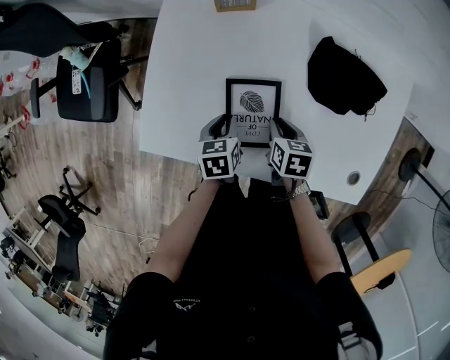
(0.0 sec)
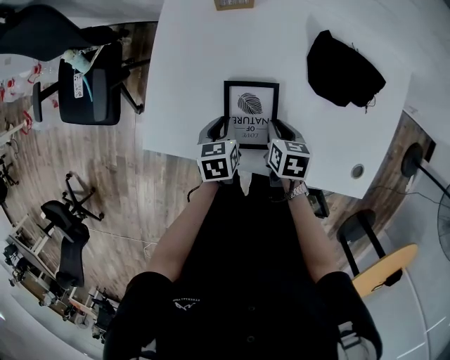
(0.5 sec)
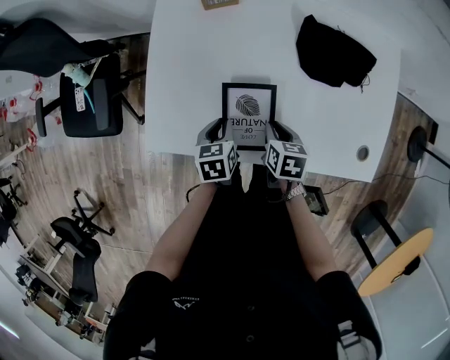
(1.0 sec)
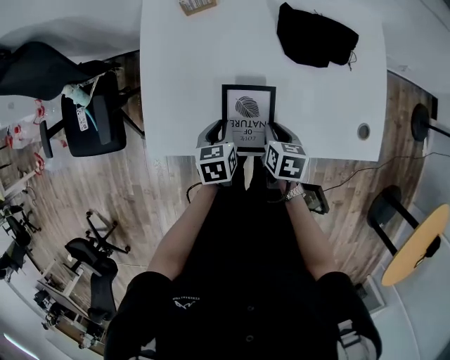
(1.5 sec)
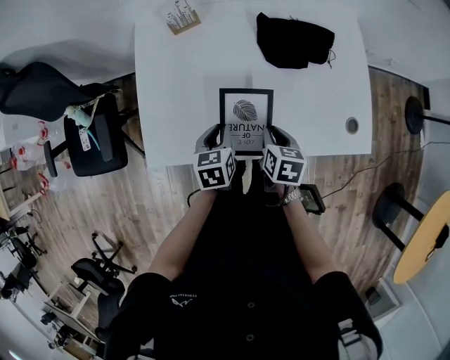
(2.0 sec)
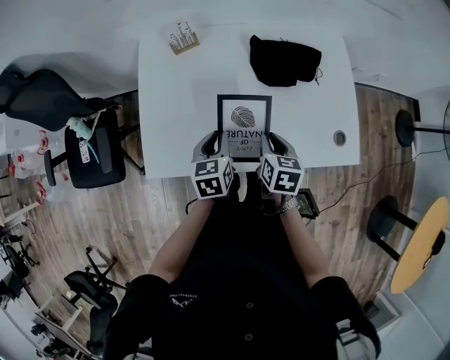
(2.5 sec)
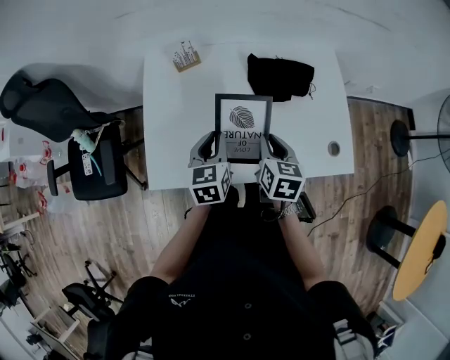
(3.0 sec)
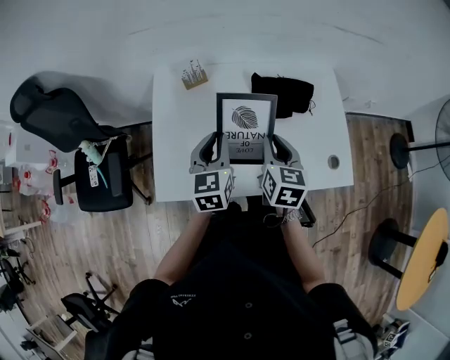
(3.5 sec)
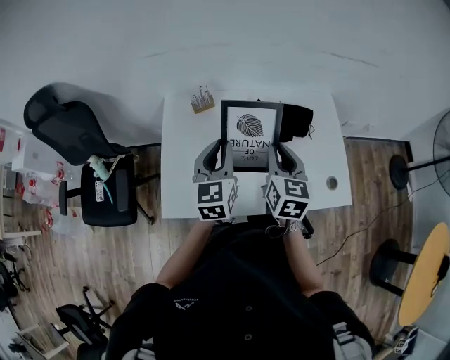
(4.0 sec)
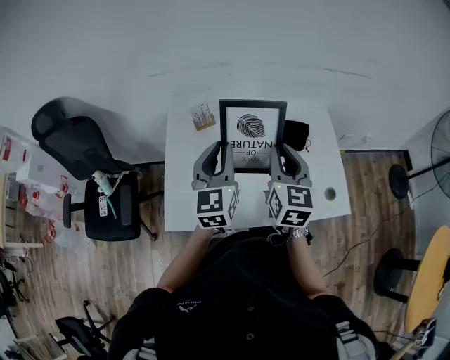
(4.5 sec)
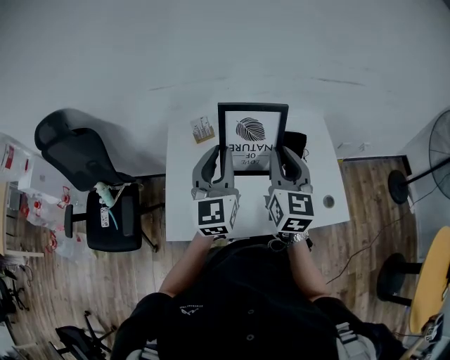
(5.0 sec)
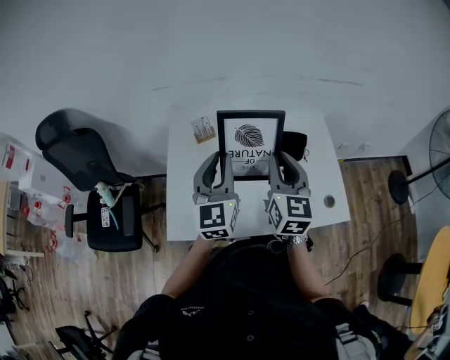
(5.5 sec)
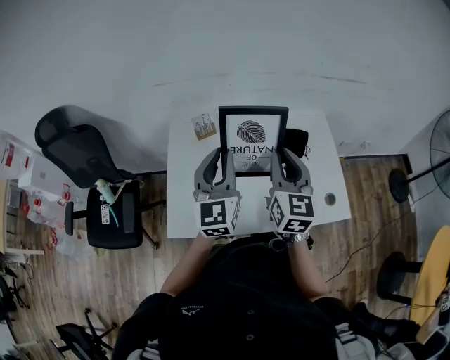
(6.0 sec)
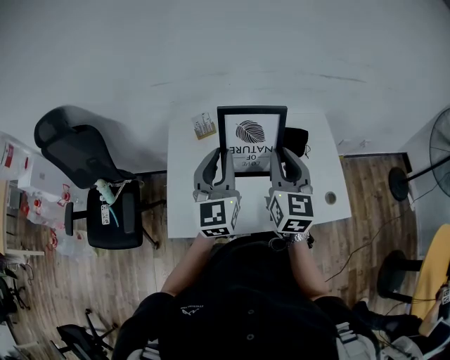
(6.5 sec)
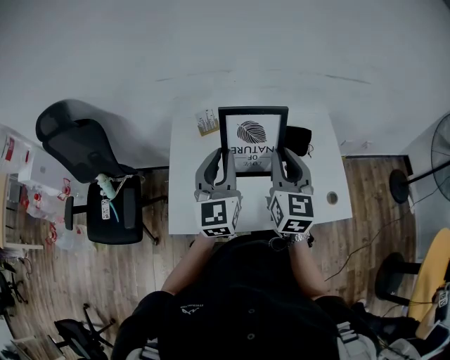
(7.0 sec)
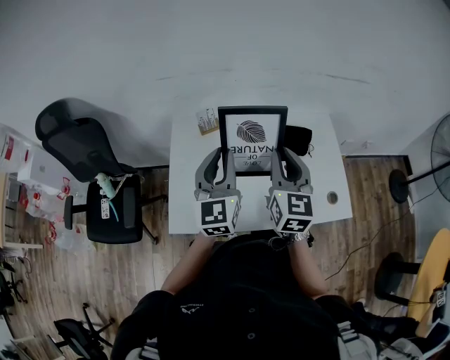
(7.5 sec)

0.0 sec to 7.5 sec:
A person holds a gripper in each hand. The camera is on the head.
0.0 sec to 2.0 sec: The right gripper heads backward and upward, covering about 15 cm, and changes its angle by approximately 20 degrees. The left gripper moves upward and backward, approximately 10 cm, and swivels some 20 degrees.
2.0 sec to 4.0 sec: Both grippers move upward, some 25 cm. The left gripper points its fingers roughly 30 degrees further upward. The right gripper angles its fingers upward, by some 30 degrees.
4.0 sec to 5.5 sec: The grippers both shift upward by approximately 10 cm.
5.5 sec to 7.5 sec: The grippers move only a little.

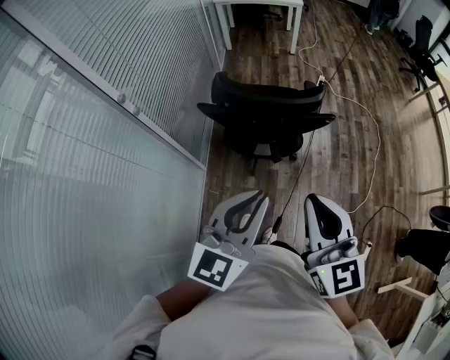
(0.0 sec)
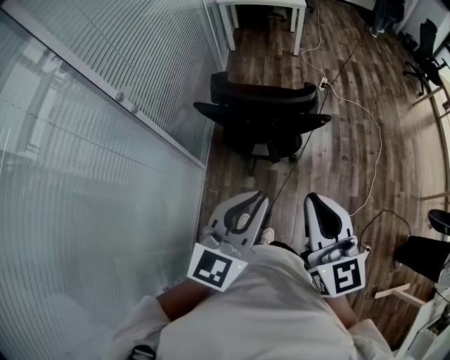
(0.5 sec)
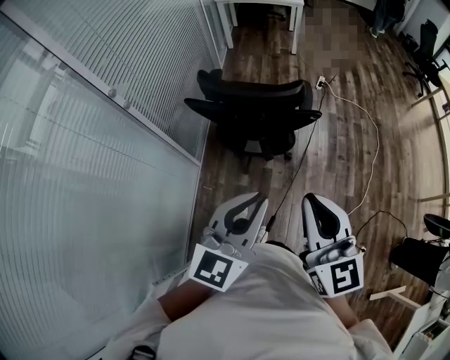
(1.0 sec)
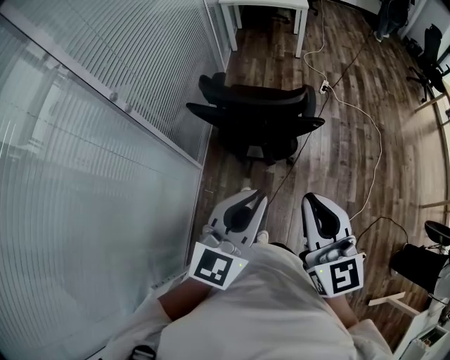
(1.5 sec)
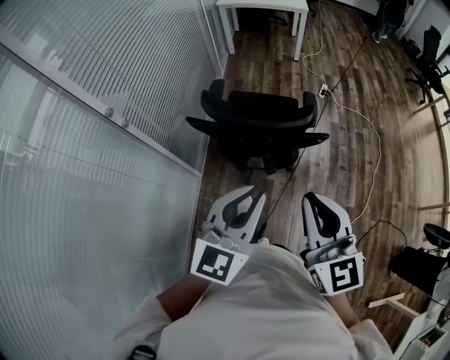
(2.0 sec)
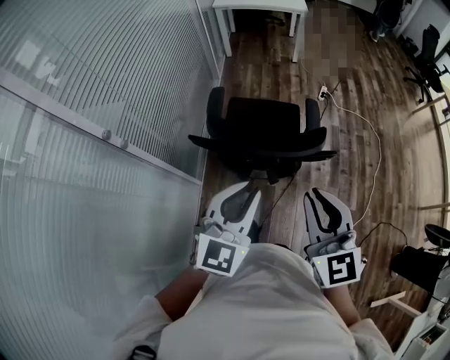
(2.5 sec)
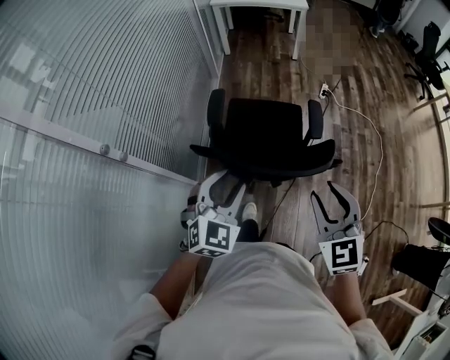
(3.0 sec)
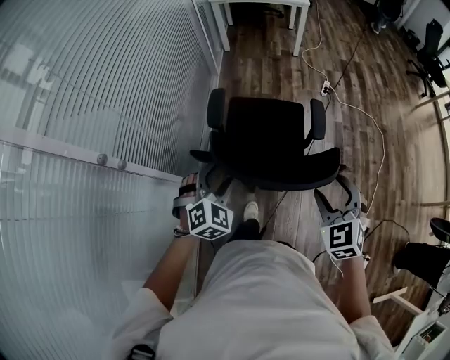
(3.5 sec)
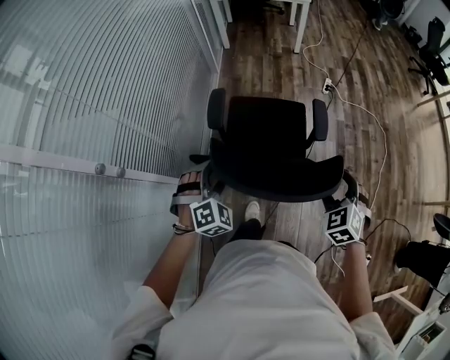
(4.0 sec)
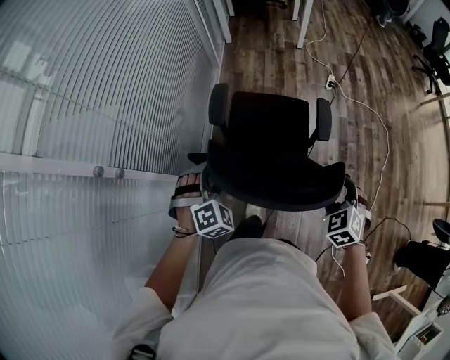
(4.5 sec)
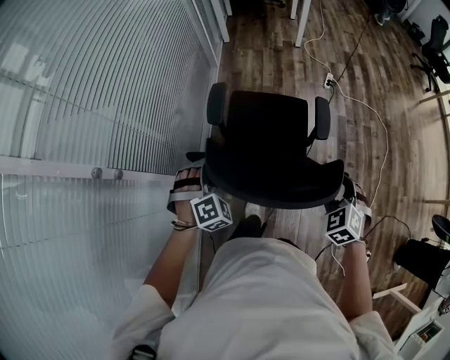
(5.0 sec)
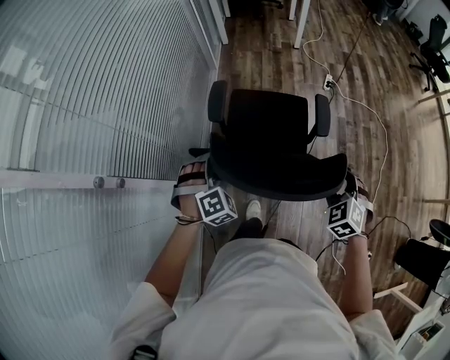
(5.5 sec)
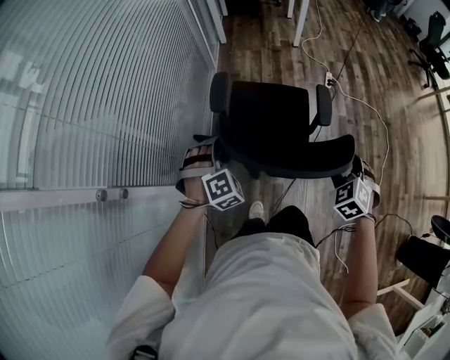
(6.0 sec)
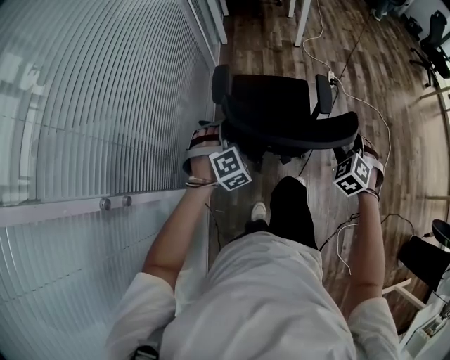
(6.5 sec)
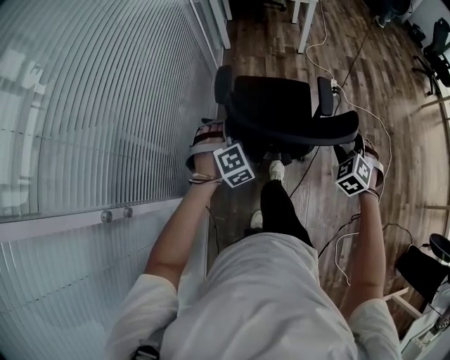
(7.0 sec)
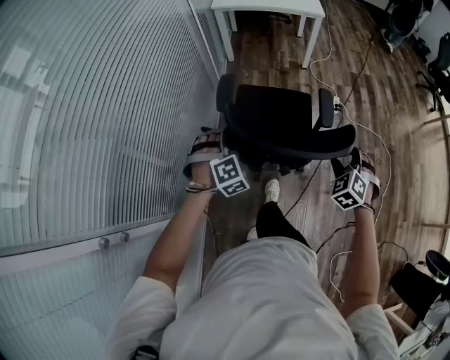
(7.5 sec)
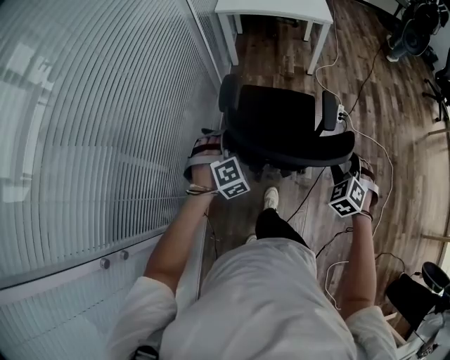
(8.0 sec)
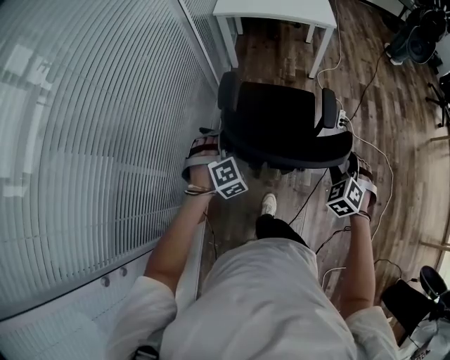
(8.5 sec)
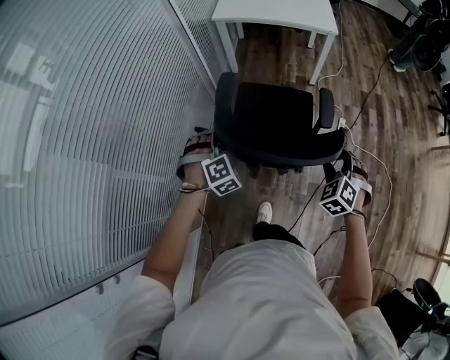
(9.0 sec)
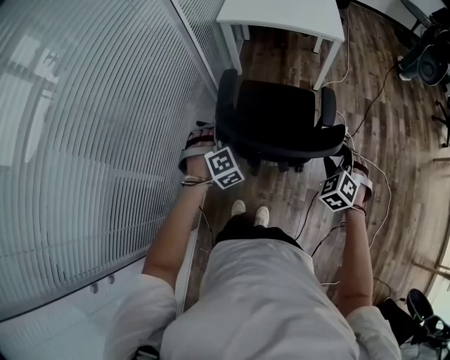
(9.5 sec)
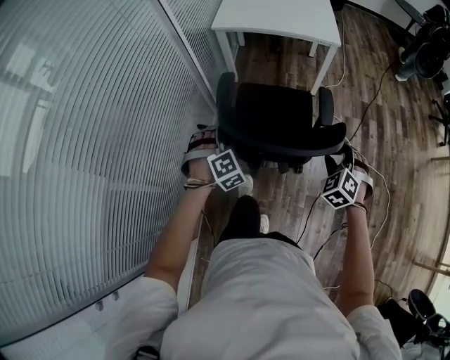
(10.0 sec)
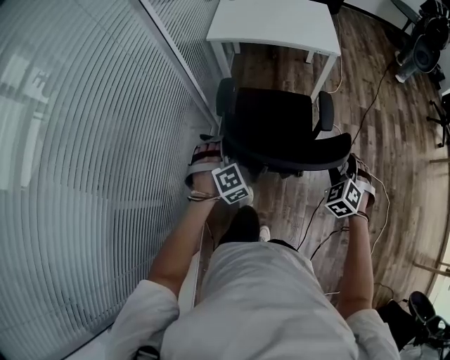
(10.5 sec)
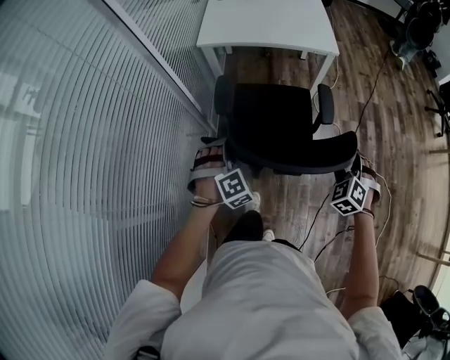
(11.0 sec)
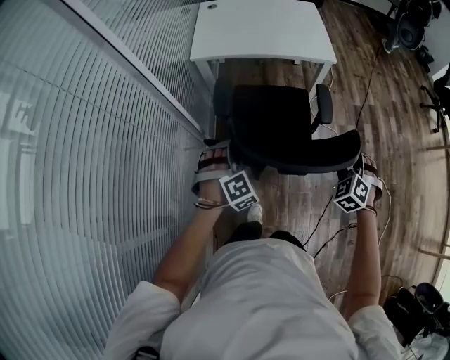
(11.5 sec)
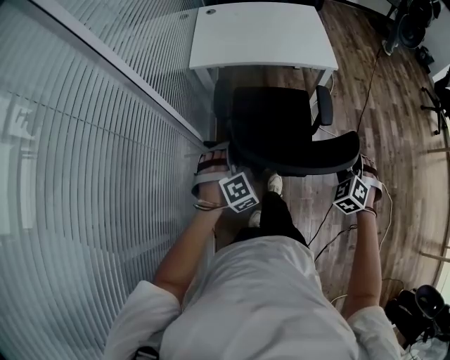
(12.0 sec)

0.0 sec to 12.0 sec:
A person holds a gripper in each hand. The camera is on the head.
0.0 sec to 2.0 sec: Both grippers travel together forward, about 10 cm.
2.0 sec to 4.0 sec: The left gripper shifts some 35 cm forward, downward and to the left, angles its fingers downward, by about 30 degrees, and opens its fingers. Meanwhile the right gripper moves forward and downward, some 30 cm, angles its fingers downward, by some 40 degrees, and opens its fingers.
4.0 sec to 6.0 sec: Both grippers travel together forward, some 10 cm.
6.0 sec to 8.0 sec: The grippers both shift forward by about 25 cm.
8.0 sec to 10.0 sec: Both grippers move forward, approximately 25 cm.
10.0 sec to 12.0 sec: The two grippers go roughly 25 cm forward.

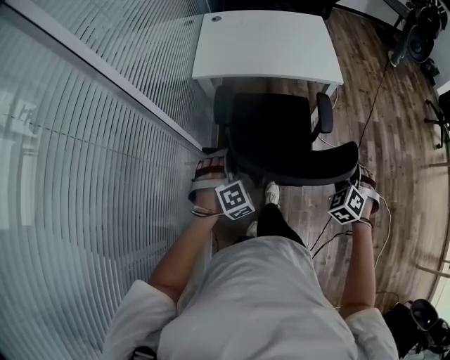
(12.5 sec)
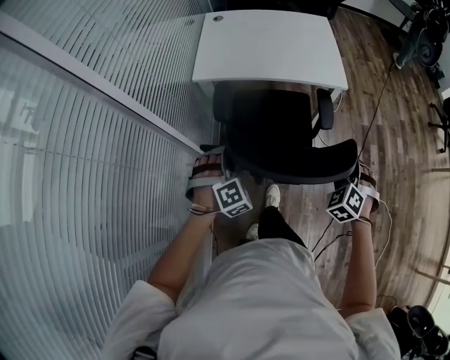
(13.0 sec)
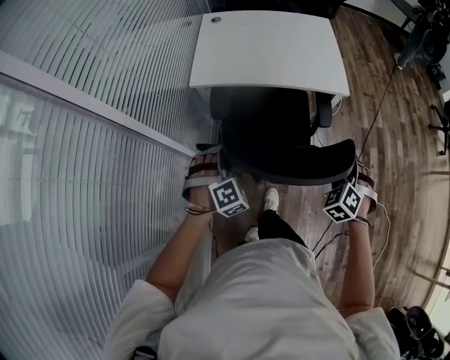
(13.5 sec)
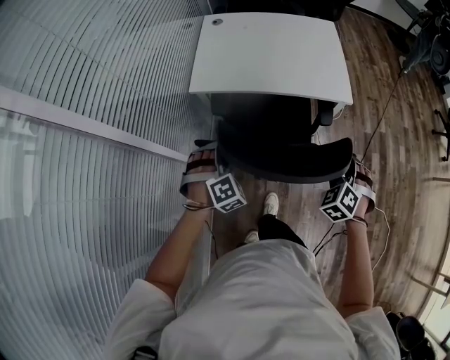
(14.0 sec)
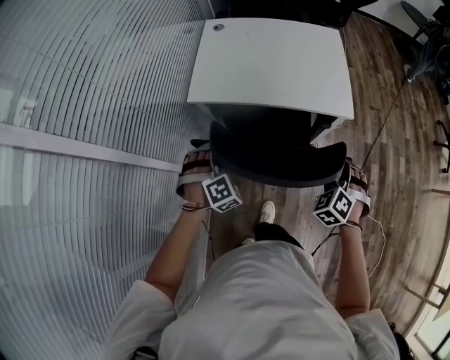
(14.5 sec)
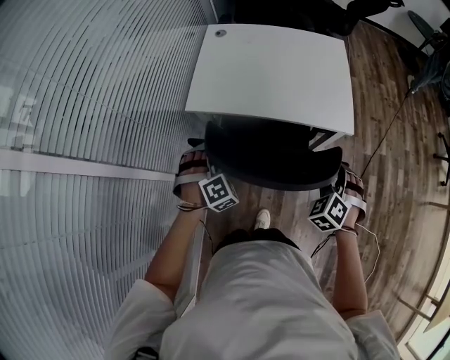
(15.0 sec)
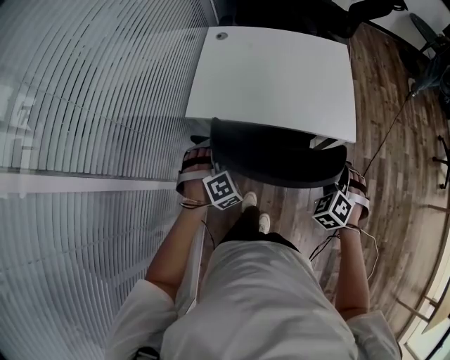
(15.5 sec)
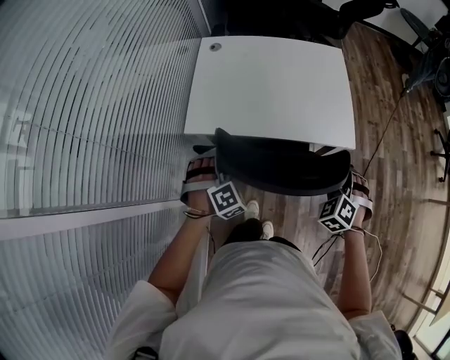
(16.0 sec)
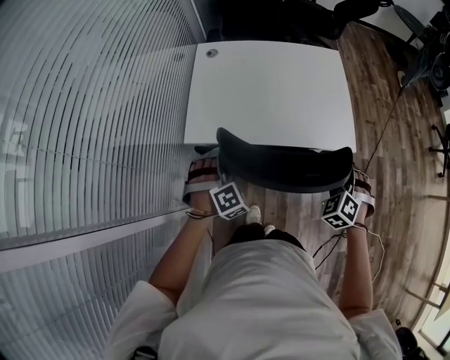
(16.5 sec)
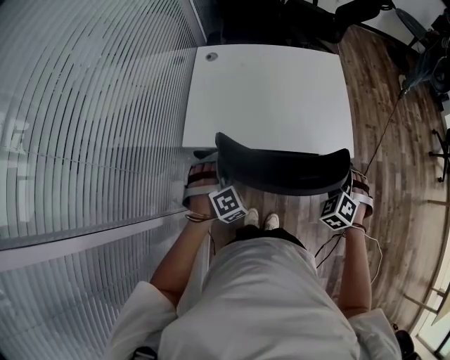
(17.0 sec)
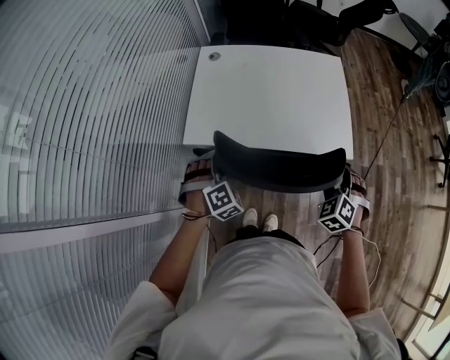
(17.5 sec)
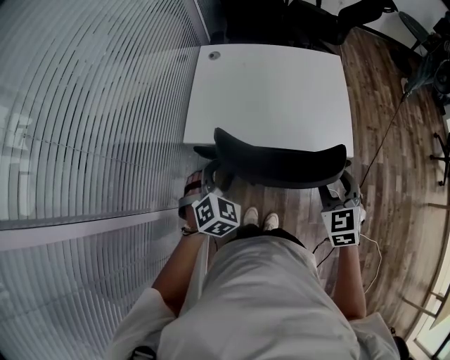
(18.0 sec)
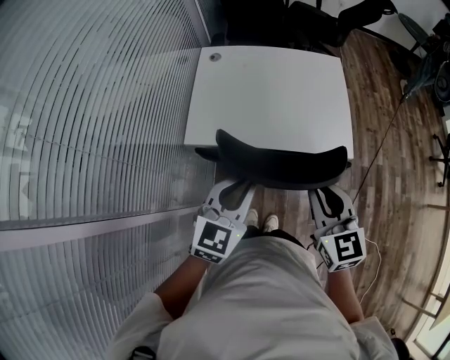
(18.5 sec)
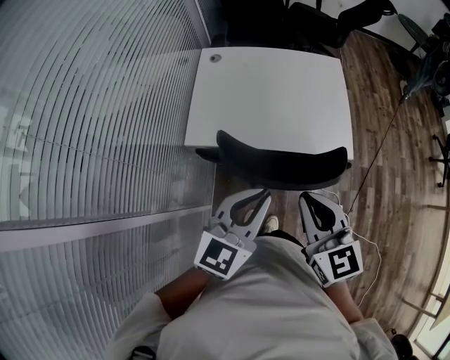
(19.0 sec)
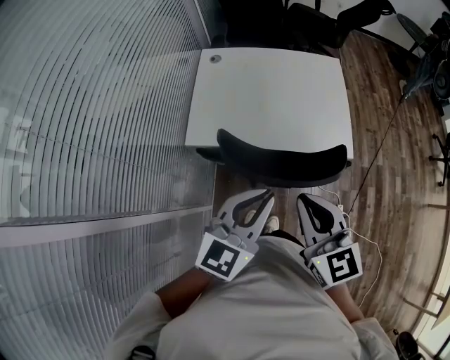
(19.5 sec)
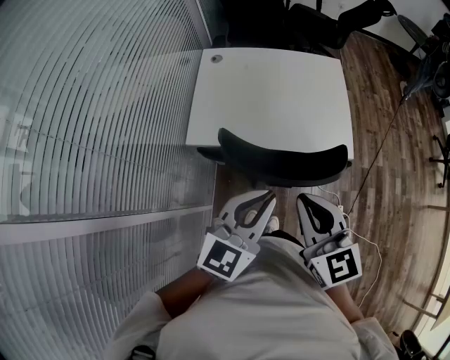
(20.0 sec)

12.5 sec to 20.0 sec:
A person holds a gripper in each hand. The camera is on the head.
12.5 sec to 14.5 sec: The two grippers go about 20 cm forward.
14.5 sec to 16.5 sec: Both grippers move forward, about 15 cm.
16.5 sec to 18.0 sec: The two grippers go roughly 5 cm upward. The right gripper rotates approximately 40 degrees, while the left gripper turns by about 30 degrees.
18.0 sec to 20.0 sec: The left gripper travels upward, to the right and backward by approximately 20 cm, tips its fingers upward by about 30 degrees, and closes its fingers; the right gripper shifts about 20 cm upward, to the left and backward, changes its angle by approximately 30 degrees, and closes.
